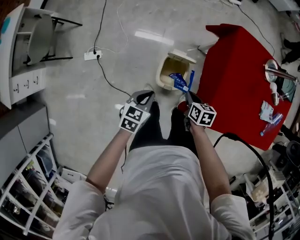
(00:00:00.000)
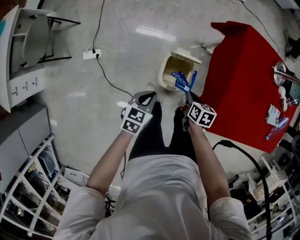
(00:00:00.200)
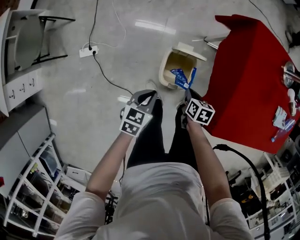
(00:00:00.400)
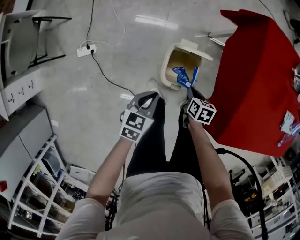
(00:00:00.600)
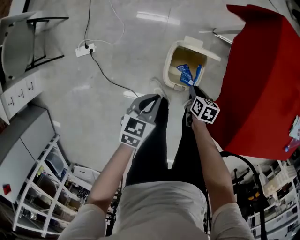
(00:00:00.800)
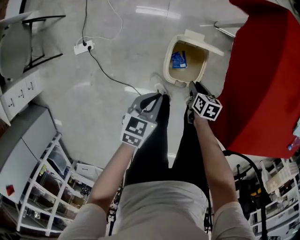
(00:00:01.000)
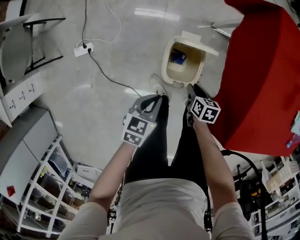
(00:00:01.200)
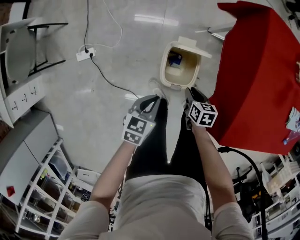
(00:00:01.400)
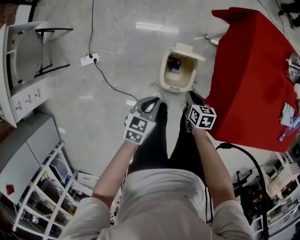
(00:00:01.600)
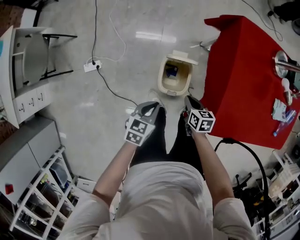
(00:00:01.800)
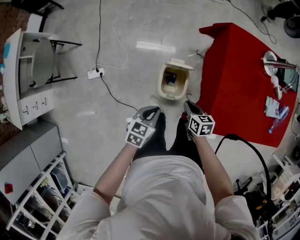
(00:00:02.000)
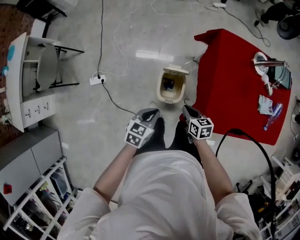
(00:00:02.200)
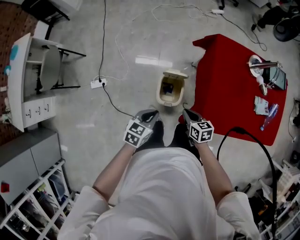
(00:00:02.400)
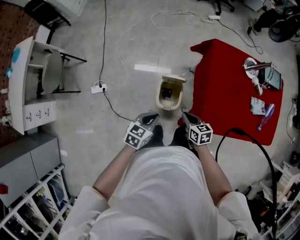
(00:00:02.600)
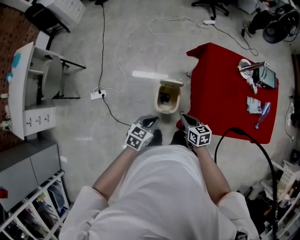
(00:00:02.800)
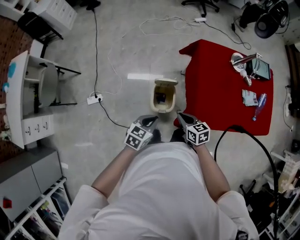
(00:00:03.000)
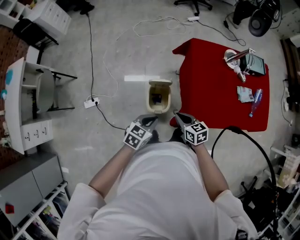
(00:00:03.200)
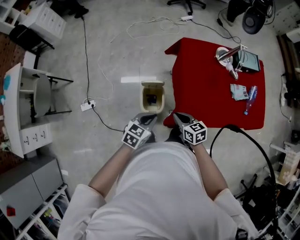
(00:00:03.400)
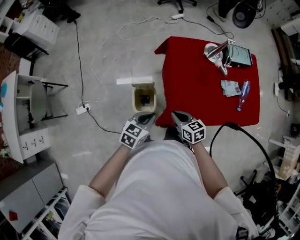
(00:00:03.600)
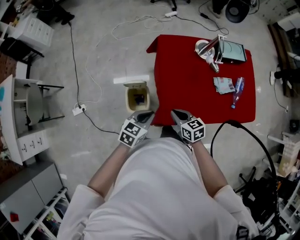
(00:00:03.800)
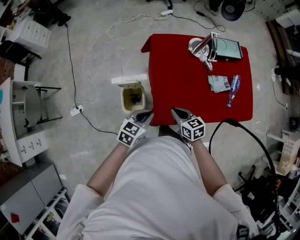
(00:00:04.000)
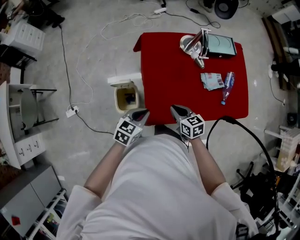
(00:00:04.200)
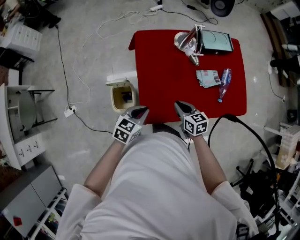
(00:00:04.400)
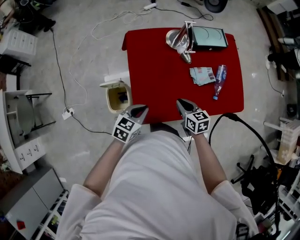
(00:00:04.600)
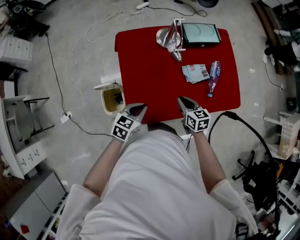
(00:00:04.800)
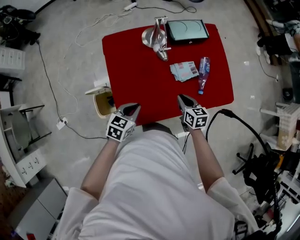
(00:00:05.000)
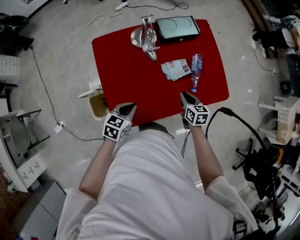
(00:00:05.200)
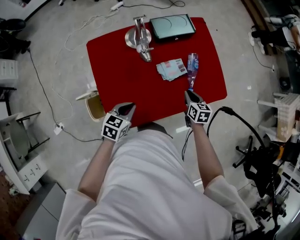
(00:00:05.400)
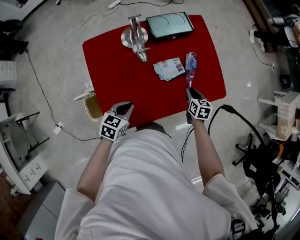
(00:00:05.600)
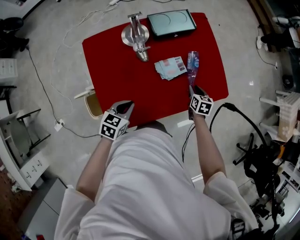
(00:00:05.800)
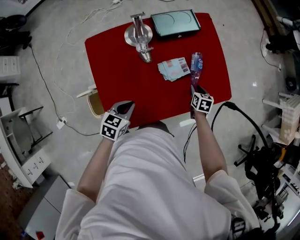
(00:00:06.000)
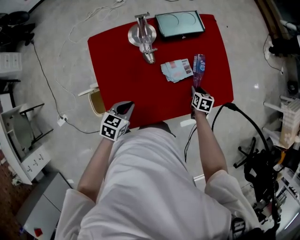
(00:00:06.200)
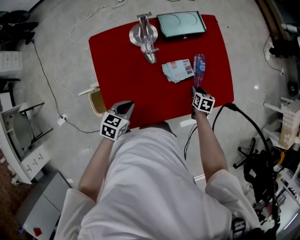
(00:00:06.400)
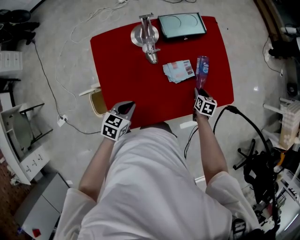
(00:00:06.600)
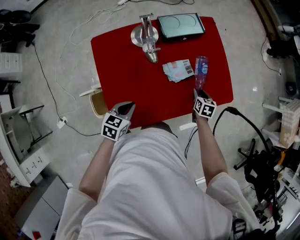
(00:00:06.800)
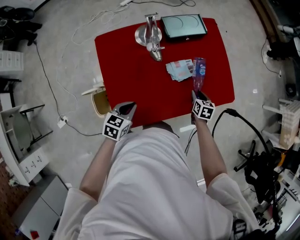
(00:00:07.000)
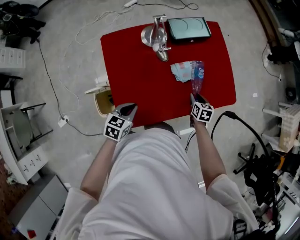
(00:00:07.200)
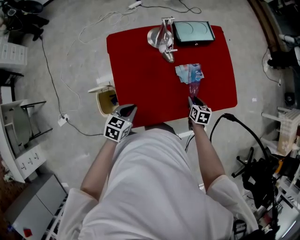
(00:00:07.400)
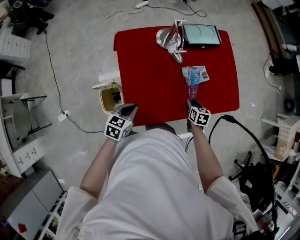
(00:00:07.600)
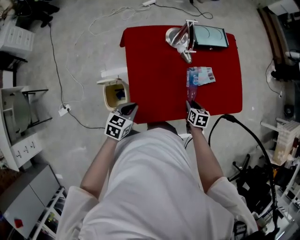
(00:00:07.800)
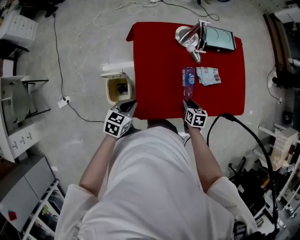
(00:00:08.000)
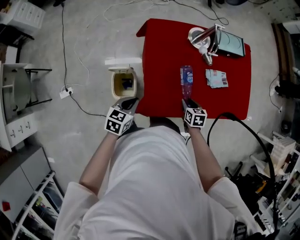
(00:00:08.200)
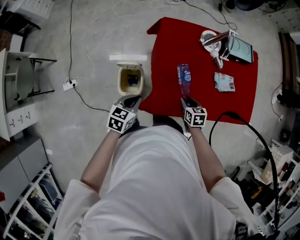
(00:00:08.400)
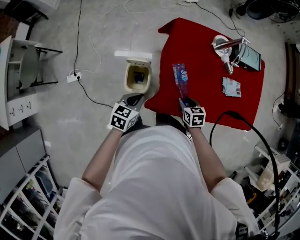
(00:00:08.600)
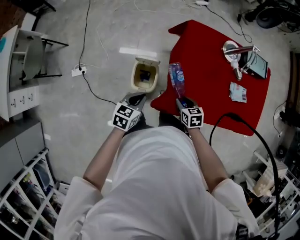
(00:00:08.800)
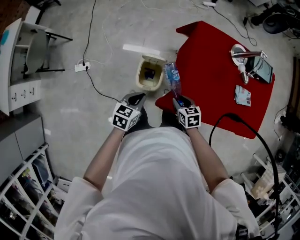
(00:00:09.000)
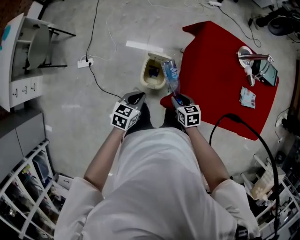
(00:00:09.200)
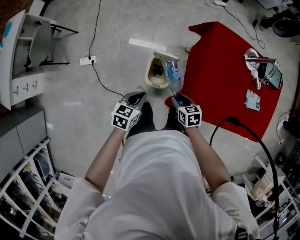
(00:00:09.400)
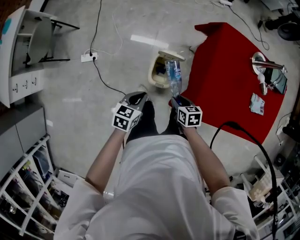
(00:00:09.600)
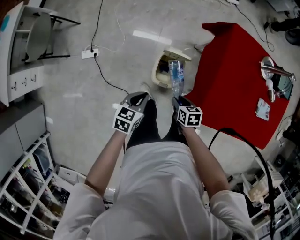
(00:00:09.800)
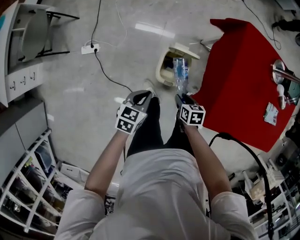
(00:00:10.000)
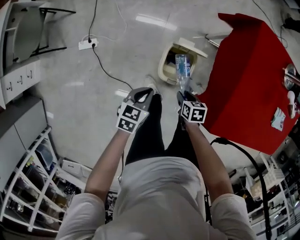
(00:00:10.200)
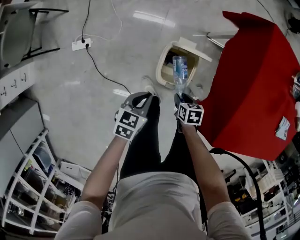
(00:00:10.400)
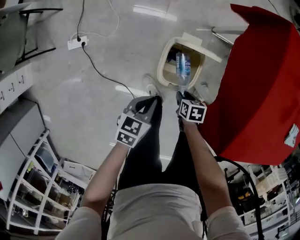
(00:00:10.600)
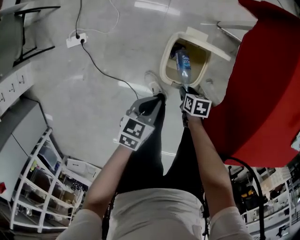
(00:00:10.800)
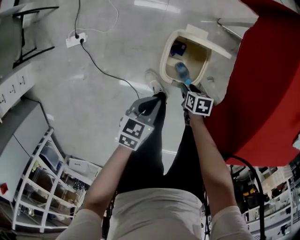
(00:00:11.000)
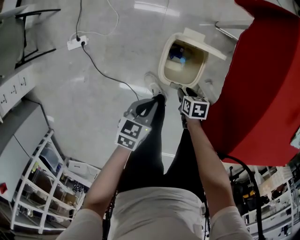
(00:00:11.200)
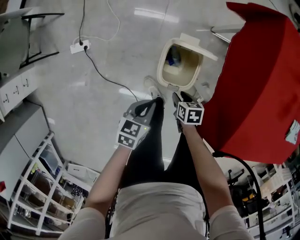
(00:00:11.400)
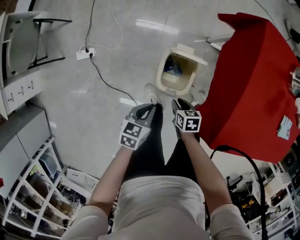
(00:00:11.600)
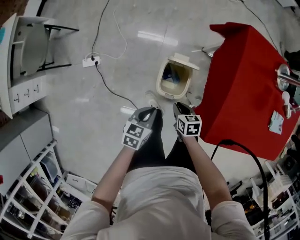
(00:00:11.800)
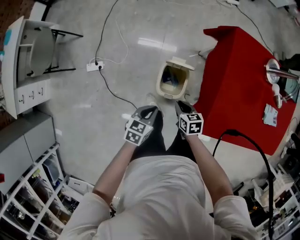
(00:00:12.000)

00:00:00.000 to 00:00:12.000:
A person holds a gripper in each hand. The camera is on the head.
00:00:00.000 to 00:00:01.600: The grippers both shift downward by roughly 10 cm.
00:00:01.600 to 00:00:03.000: Both grippers travel together upward, roughly 25 cm. The right gripper rotates approximately 20 degrees.
00:00:03.000 to 00:00:04.400: Both grippers move to the right, approximately 30 cm.
00:00:04.400 to 00:00:06.000: The left gripper moves approximately 15 cm. The right gripper moves about 40 cm, swivels roughly 40 degrees, and opens up.
00:00:06.000 to 00:00:07.600: Both grippers move backward and to the left, approximately 15 cm.
00:00:07.600 to 00:00:09.000: The left gripper shifts by roughly 25 cm, and rotates about 20 degrees. Meanwhile the right gripper ends up about 40 cm from where it was, and rotates approximately 40 degrees.
00:00:09.000 to 00:00:10.400: The grippers both shift downward and to the left by roughly 30 cm. The right gripper swivels roughly 20 degrees.
00:00:10.400 to 00:00:12.000: Both grippers move upward, approximately 15 cm. The right gripper closes.

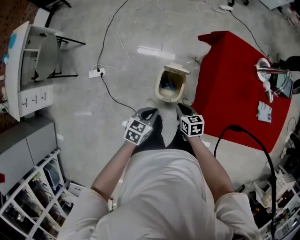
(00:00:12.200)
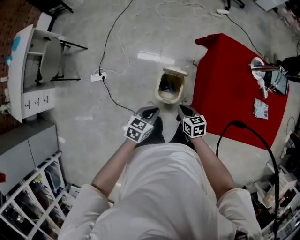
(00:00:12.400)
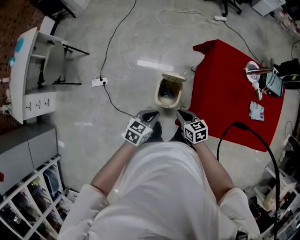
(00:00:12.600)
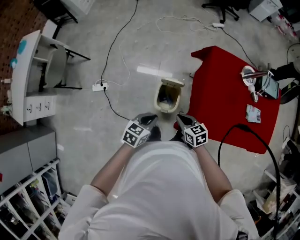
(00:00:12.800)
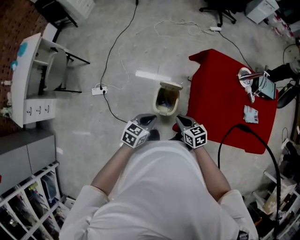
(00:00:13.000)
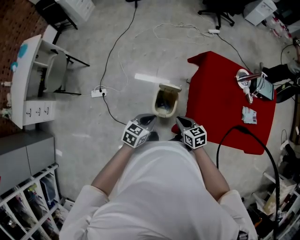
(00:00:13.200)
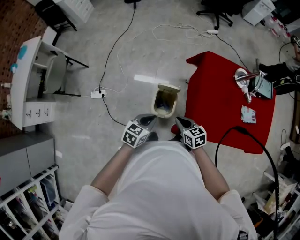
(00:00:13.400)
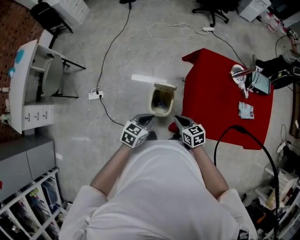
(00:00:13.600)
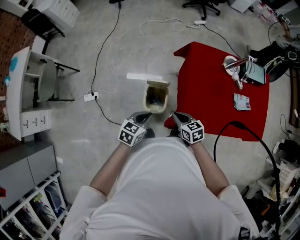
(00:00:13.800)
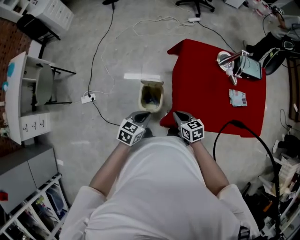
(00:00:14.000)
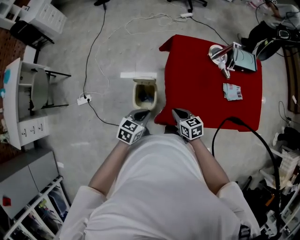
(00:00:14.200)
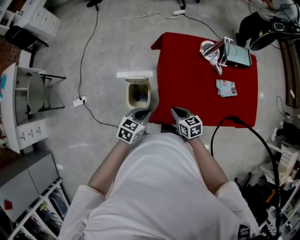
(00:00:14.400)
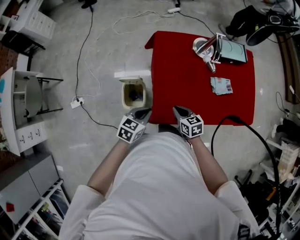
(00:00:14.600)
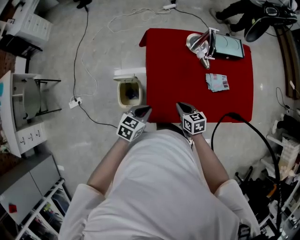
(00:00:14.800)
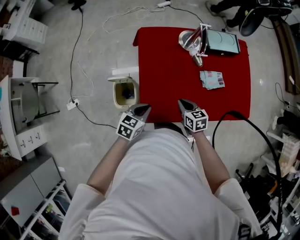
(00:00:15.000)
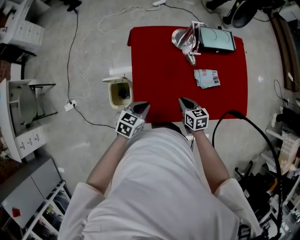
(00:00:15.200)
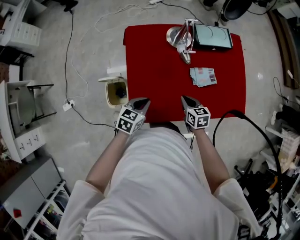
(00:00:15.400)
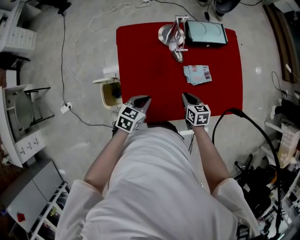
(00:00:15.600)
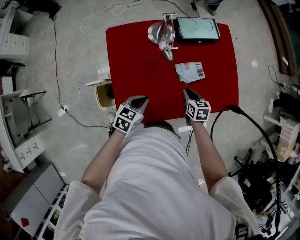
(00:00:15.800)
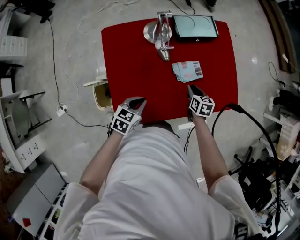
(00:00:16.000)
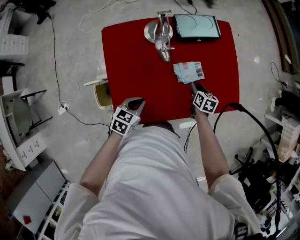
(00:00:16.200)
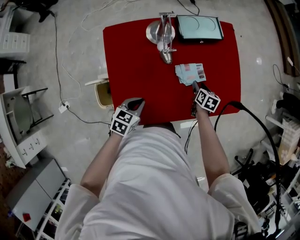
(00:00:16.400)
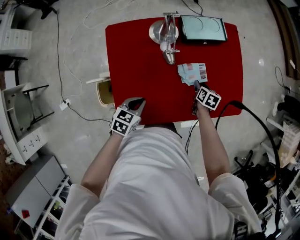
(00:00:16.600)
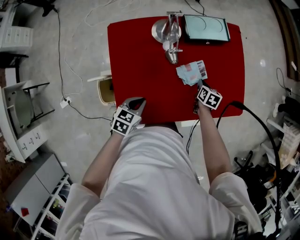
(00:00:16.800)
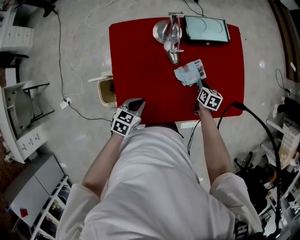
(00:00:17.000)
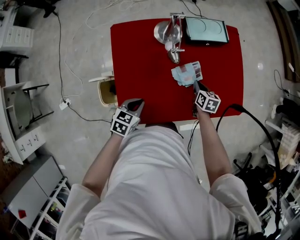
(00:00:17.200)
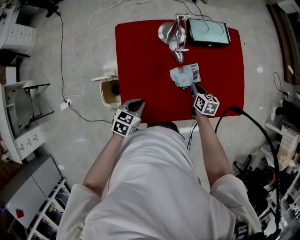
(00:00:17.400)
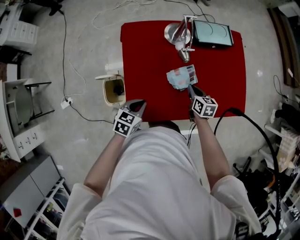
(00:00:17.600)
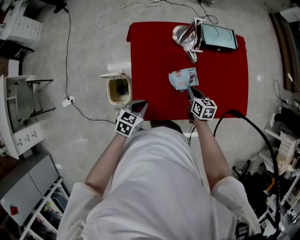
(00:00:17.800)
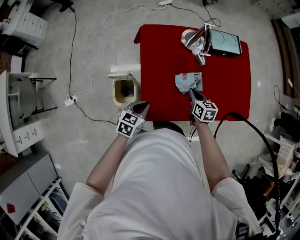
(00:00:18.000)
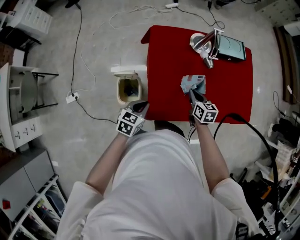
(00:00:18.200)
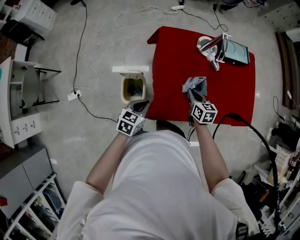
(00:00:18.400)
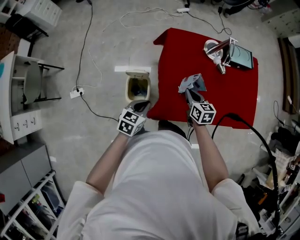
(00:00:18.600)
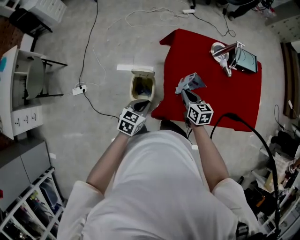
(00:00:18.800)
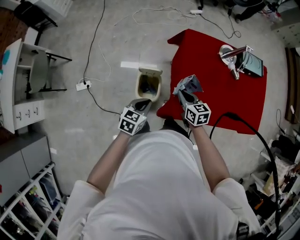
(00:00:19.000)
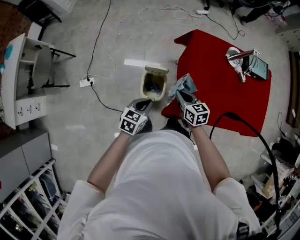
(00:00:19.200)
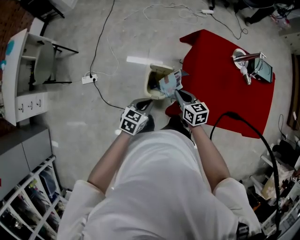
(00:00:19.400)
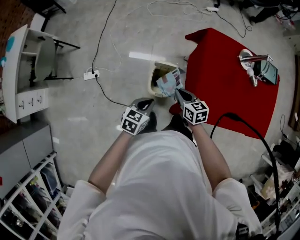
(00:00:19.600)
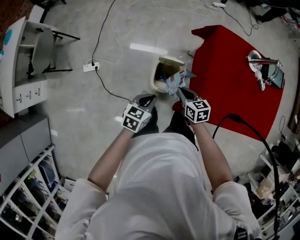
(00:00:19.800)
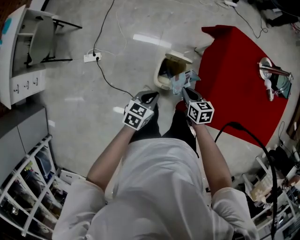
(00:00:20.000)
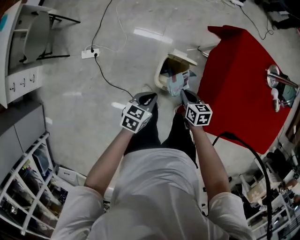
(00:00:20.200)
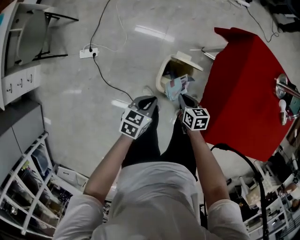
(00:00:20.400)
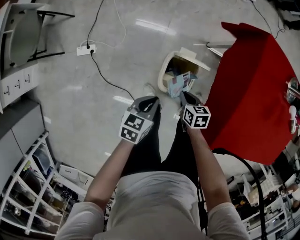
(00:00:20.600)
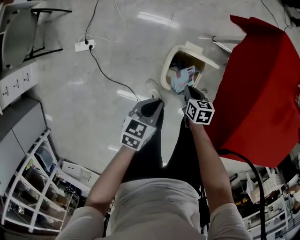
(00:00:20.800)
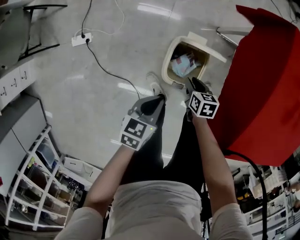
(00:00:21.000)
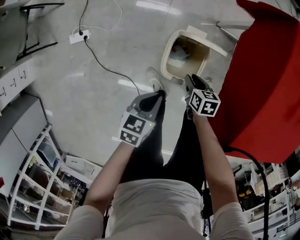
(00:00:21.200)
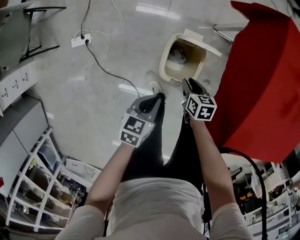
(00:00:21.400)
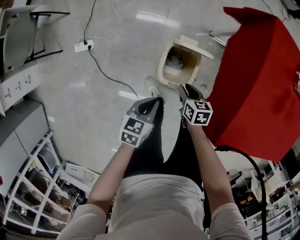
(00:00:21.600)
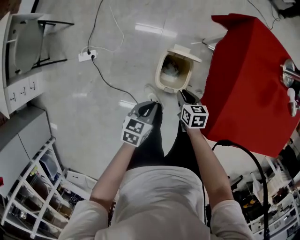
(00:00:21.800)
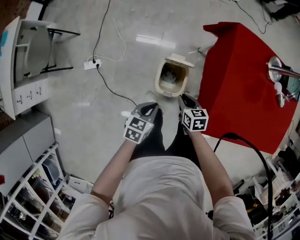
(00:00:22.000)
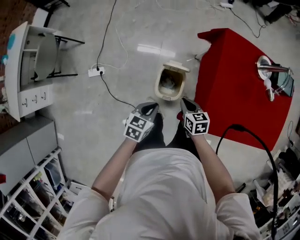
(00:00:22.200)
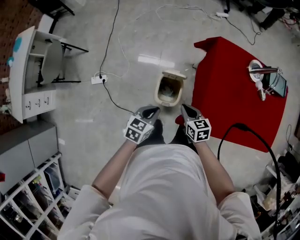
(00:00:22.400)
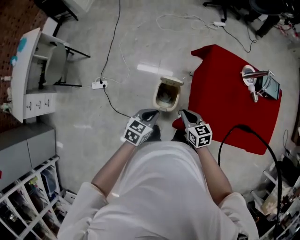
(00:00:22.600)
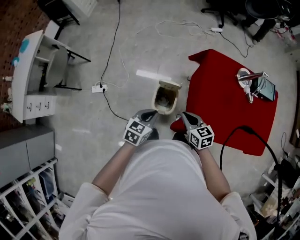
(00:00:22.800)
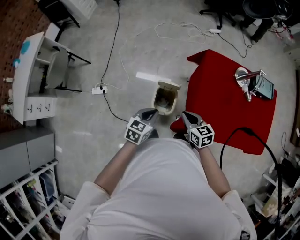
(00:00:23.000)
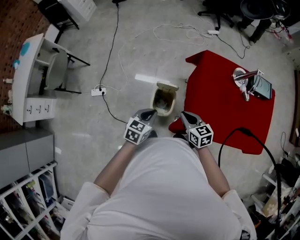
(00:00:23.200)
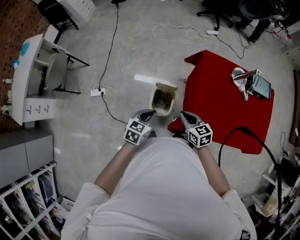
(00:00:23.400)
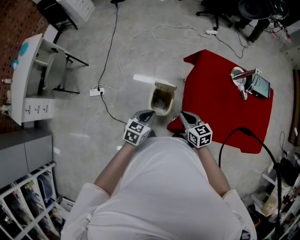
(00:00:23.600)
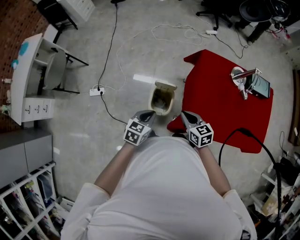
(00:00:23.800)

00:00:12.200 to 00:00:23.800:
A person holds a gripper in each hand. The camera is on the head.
00:00:12.200 to 00:00:13.600: The two grippers go about 15 cm upward.
00:00:13.600 to 00:00:15.000: The two grippers go roughly 30 cm to the right. The right gripper swivels about 20 degrees.
00:00:15.000 to 00:00:16.600: The right gripper travels to the right and forward by about 30 cm, swivels some 40 degrees, and opens its fingers, while the left gripper shifts some 15 cm to the right and forward.
00:00:16.600 to 00:00:18.000: The right gripper goes roughly 25 cm to the left, backward and upward, rotates about 30 degrees, and closes. The left gripper is displaced to the left and backward by some 15 cm.
00:00:18.000 to 00:00:19.400: The grippers both shift to the left by some 30 cm. The right gripper swivels some 30 degrees.
00:00:19.400 to 00:00:21.000: The right gripper goes some 40 cm downward, rotates roughly 30 degrees, and opens. The left gripper shifts roughly 25 cm downward.
00:00:21.000 to 00:00:22.400: Both grippers travel together upward, some 30 cm. The right gripper rotates approximately 20 degrees, and closes up.
00:00:22.400 to 00:00:23.800: The right gripper is displaced upward by some 10 cm; the left gripper is displaced upward by roughly 5 cm.
